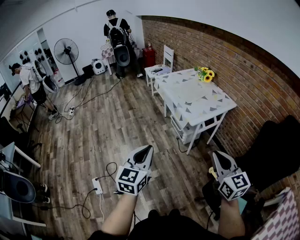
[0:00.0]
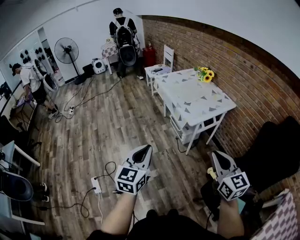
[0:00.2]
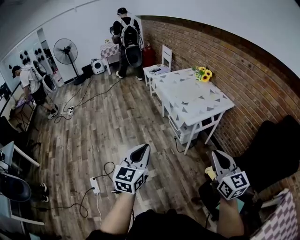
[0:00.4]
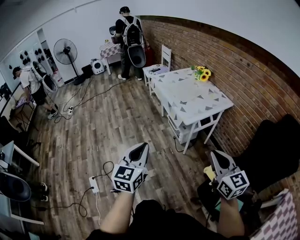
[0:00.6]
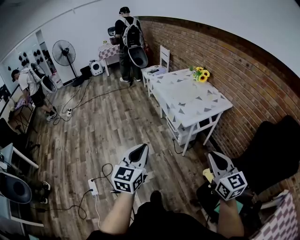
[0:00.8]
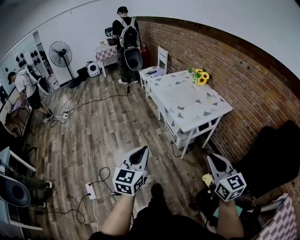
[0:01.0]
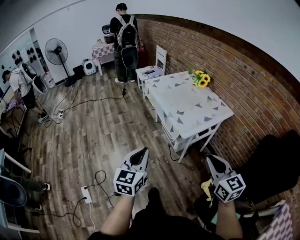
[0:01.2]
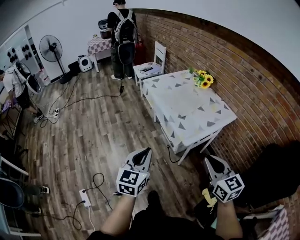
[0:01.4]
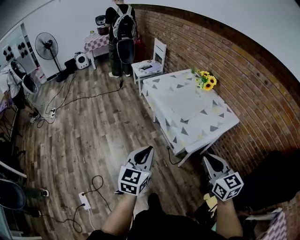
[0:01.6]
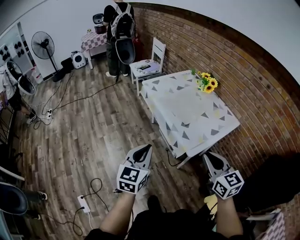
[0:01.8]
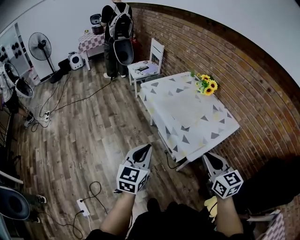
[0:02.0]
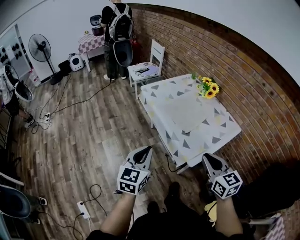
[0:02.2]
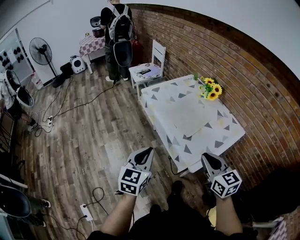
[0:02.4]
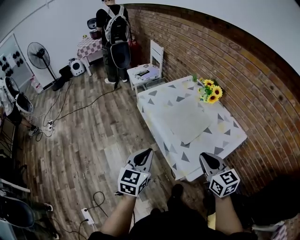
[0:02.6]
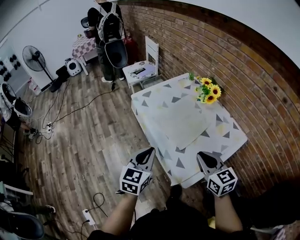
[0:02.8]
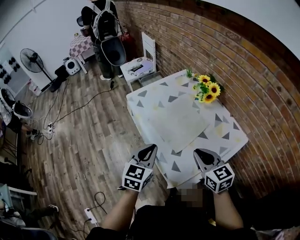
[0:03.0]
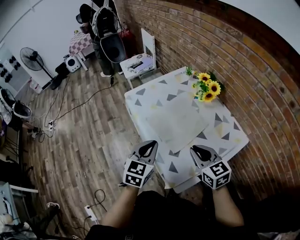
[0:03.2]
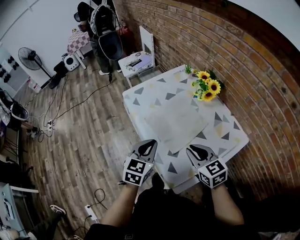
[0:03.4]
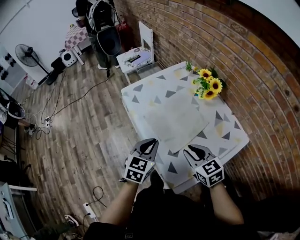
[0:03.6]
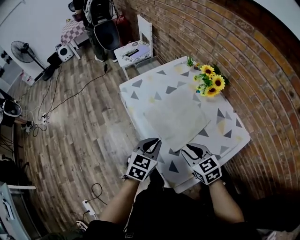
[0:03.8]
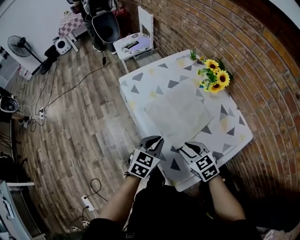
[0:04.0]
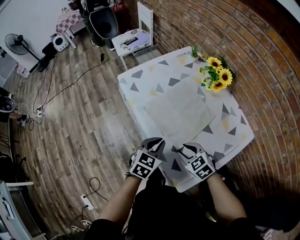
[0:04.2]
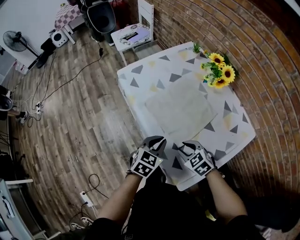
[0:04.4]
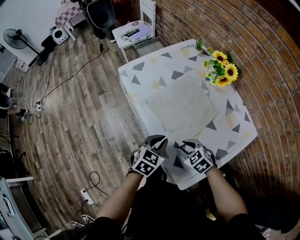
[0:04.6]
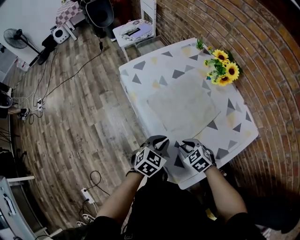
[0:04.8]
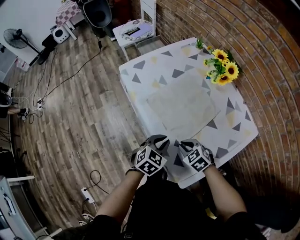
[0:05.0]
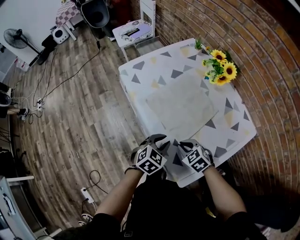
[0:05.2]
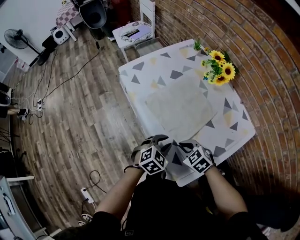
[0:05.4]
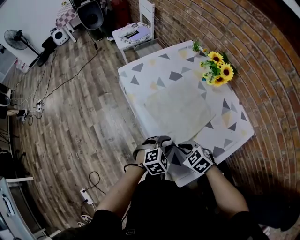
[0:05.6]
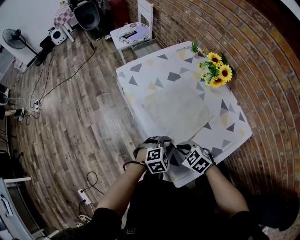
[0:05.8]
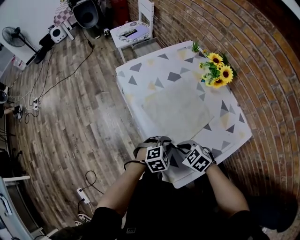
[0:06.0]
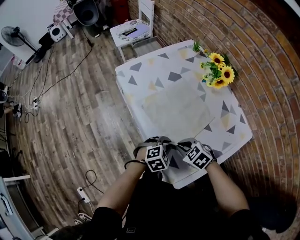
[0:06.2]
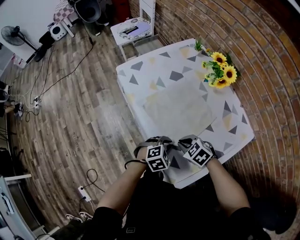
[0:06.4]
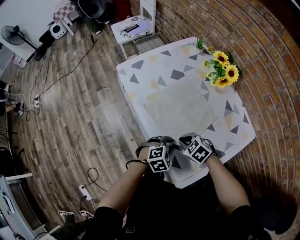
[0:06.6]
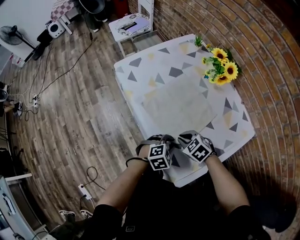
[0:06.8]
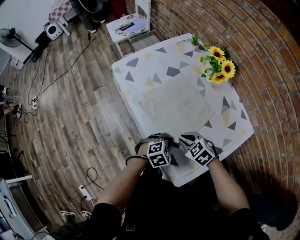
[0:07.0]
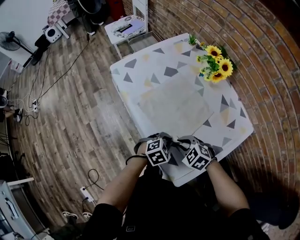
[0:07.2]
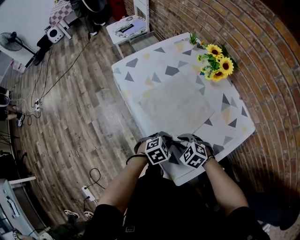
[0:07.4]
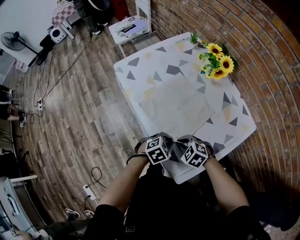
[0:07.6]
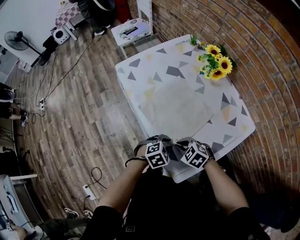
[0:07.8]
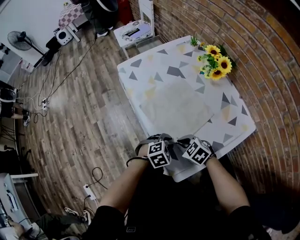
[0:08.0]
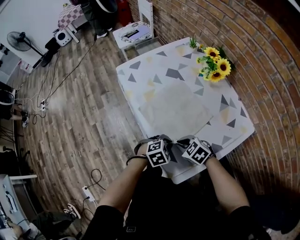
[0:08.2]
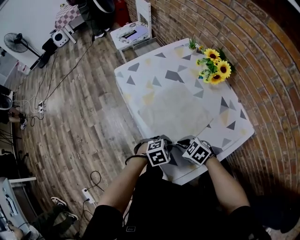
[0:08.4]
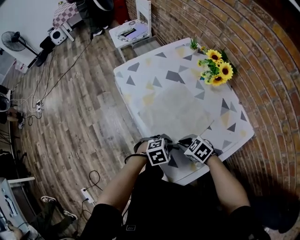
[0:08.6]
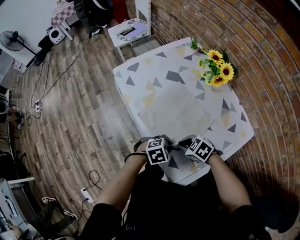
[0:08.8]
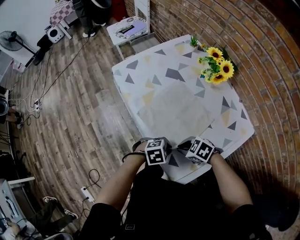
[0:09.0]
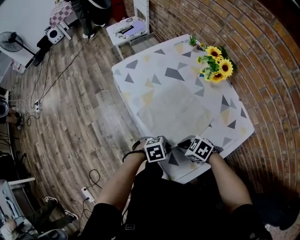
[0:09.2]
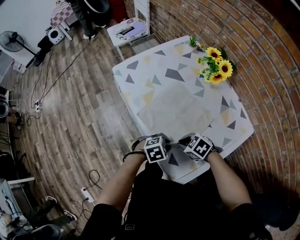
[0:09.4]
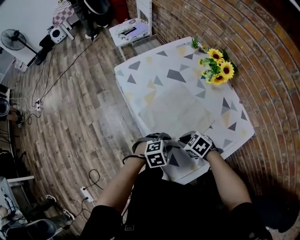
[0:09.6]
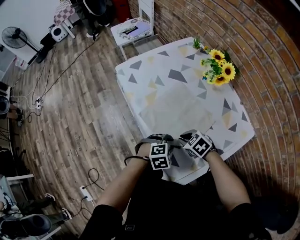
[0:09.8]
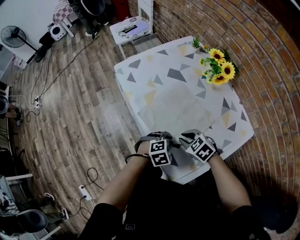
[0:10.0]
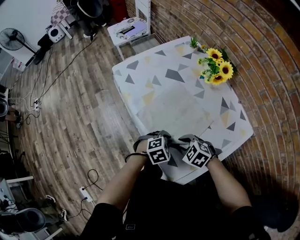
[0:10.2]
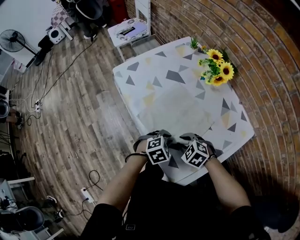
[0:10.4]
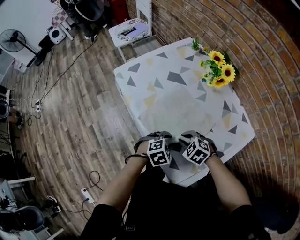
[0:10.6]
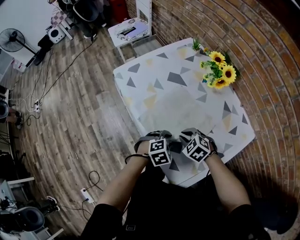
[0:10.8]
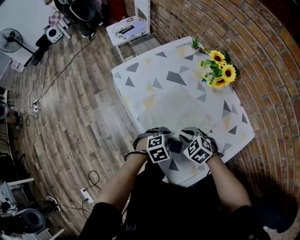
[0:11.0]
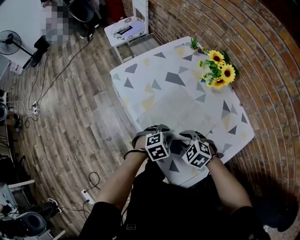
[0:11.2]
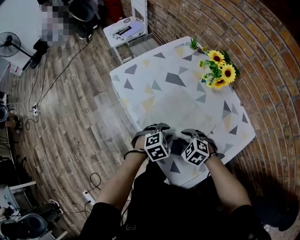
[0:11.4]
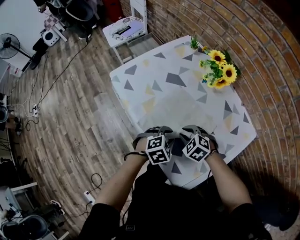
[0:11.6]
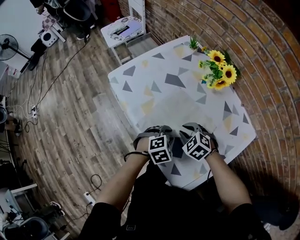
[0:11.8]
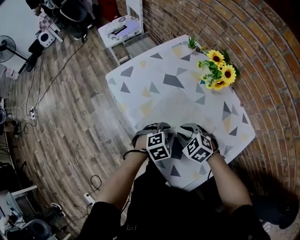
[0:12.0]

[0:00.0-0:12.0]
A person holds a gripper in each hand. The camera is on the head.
0:00.0 to 0:01.6: Both grippers travel together forward, some 25 cm.
0:01.6 to 0:03.0: The grippers both shift forward by approximately 30 cm.
0:03.0 to 0:04.4: The two grippers go some 20 cm downward. The right gripper points its fingers about 30 degrees further downward, and opens its fingers. The left gripper turns by about 20 degrees.
0:04.4 to 0:06.0: The left gripper goes approximately 10 cm downward and to the right, and changes its angle by roughly 40 degrees; the right gripper closes up.
0:06.0 to 0:07.6: The grippers make only small movements.
0:07.6 to 0:09.0: The right gripper changes its angle by some 20 degrees.
0:09.0 to 0:10.4: The left gripper moves roughly 5 cm; the right gripper changes its angle by about 20 degrees, and opens its fingers.
0:10.4 to 0:12.0: The right gripper changes place by roughly 10 cm, while the left gripper ends up about 10 cm from where it was.

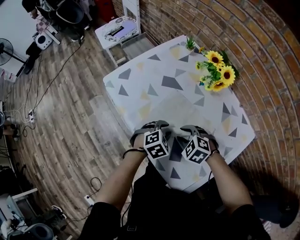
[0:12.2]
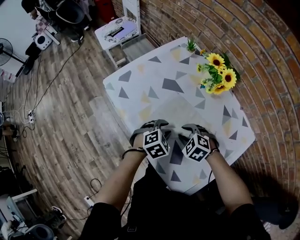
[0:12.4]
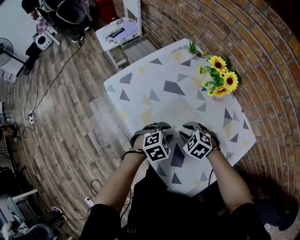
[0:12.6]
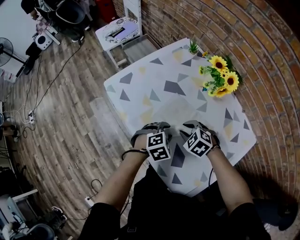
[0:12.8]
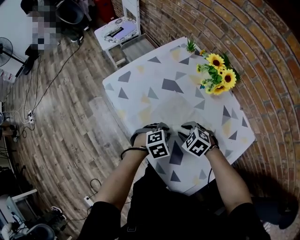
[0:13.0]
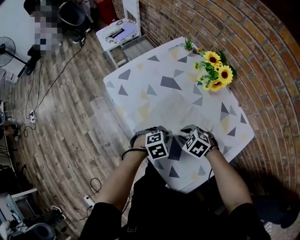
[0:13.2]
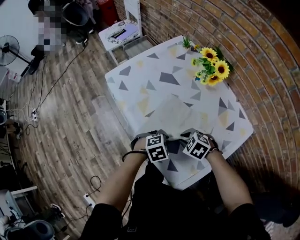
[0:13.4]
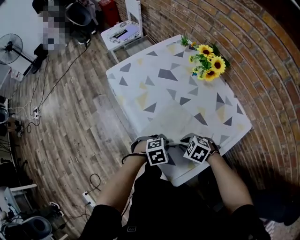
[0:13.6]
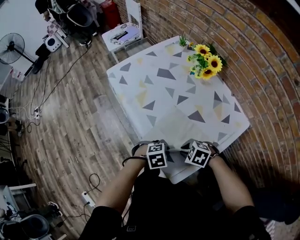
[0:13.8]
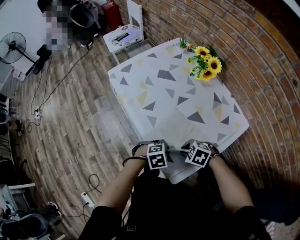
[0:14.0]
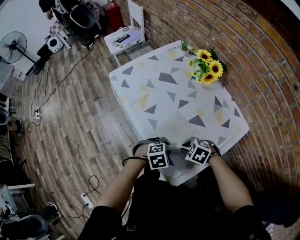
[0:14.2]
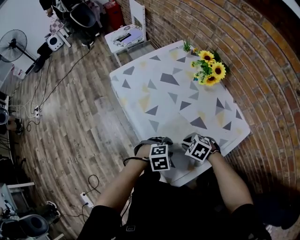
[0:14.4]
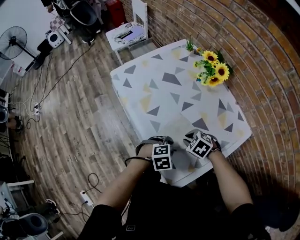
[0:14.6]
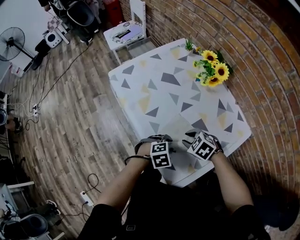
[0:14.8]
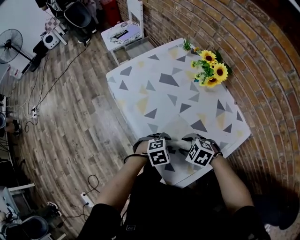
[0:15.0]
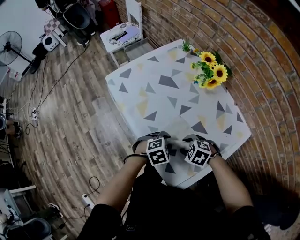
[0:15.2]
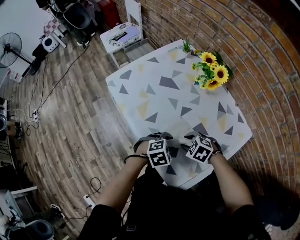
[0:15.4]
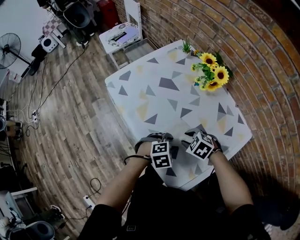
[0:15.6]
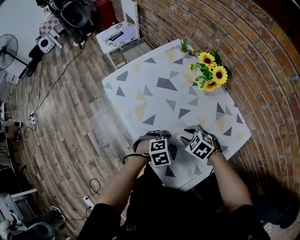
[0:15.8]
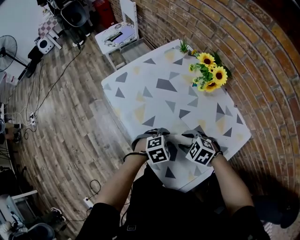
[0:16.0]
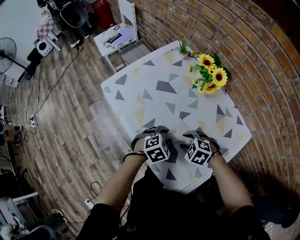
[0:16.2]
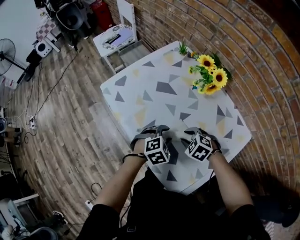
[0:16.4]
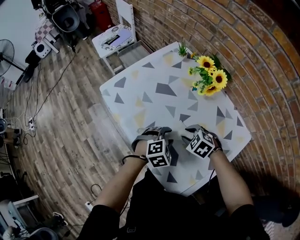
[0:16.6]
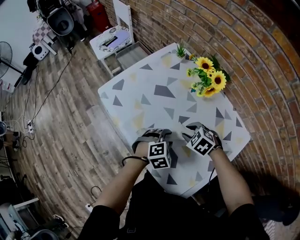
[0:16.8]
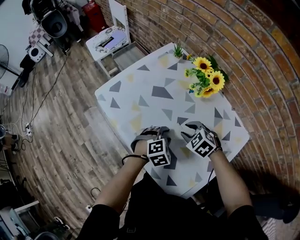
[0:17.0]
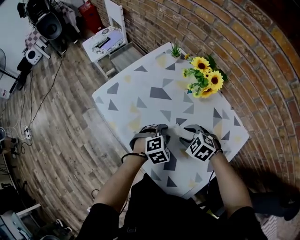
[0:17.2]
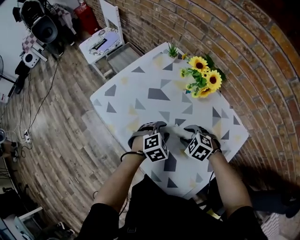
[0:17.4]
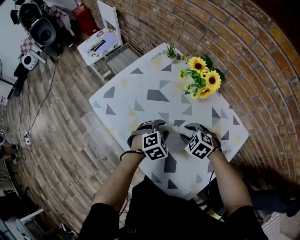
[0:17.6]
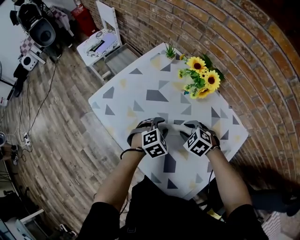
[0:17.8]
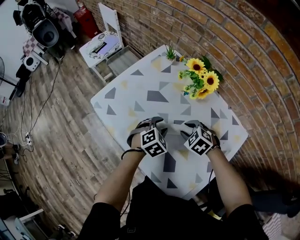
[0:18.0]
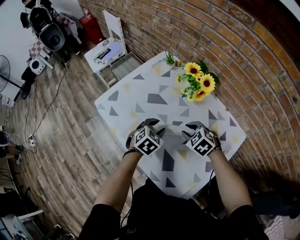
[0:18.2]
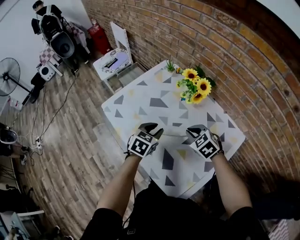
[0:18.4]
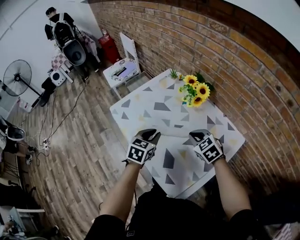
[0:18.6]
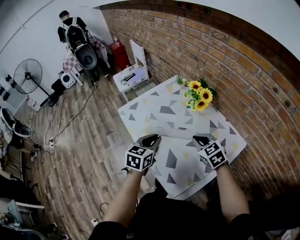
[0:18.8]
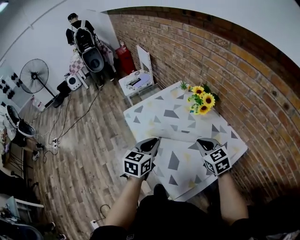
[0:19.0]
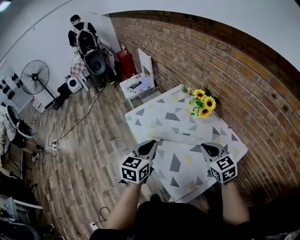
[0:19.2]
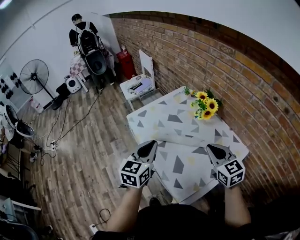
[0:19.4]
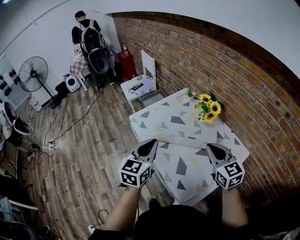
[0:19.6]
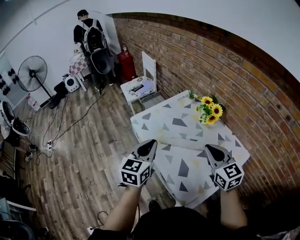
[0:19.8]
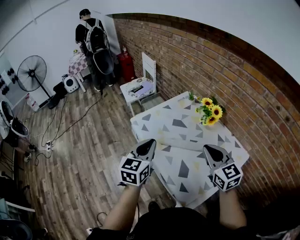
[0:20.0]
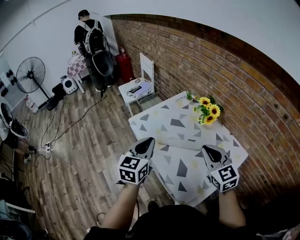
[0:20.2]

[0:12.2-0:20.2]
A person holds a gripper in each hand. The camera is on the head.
0:12.2 to 0:13.8: The right gripper changes place by roughly 20 cm, and closes up, while the left gripper ends up about 20 cm from where it was, and closes its fingers.
0:13.8 to 0:15.4: The right gripper changes place by roughly 10 cm, and opens up. The left gripper ends up about 10 cm from where it was, and opens up.
0:15.4 to 0:17.0: The left gripper moves some 10 cm; the right gripper shifts by roughly 10 cm.
0:17.0 to 0:18.6: Both grippers travel together upward, roughly 10 cm. The left gripper rotates around the line of its fingers by roughly 40 degrees, counterclockwise from behind, and closes its fingers. Meanwhile the right gripper rotates some 20 degrees, and closes.
0:18.6 to 0:20.2: The right gripper moves upward and backward, about 20 cm, and turns by some 30 degrees. Meanwhile the left gripper goes about 20 cm upward, to the left and backward, and turns by roughly 30 degrees.

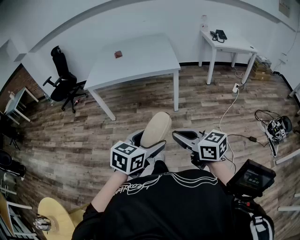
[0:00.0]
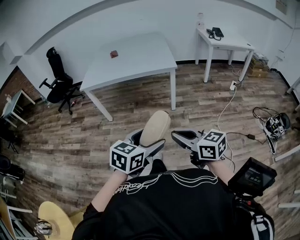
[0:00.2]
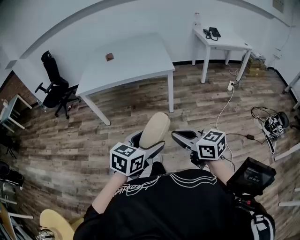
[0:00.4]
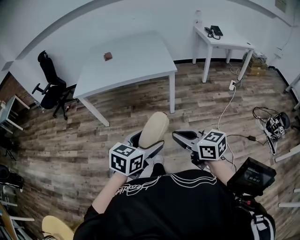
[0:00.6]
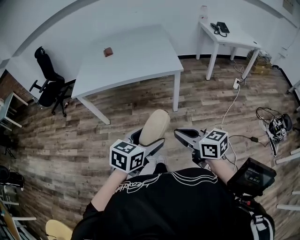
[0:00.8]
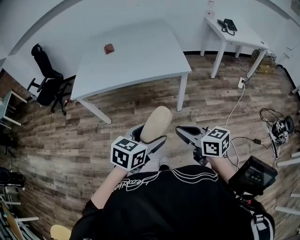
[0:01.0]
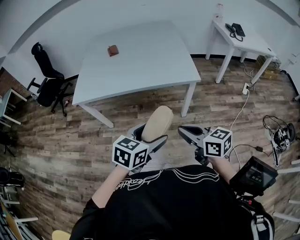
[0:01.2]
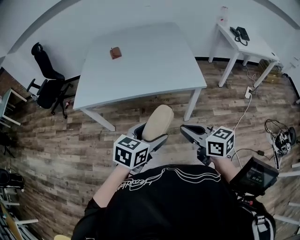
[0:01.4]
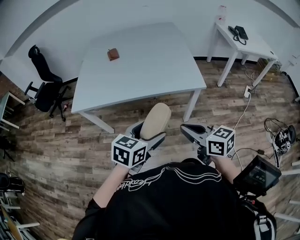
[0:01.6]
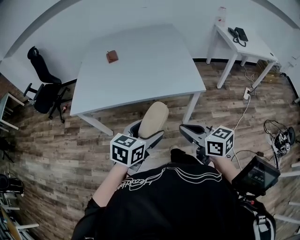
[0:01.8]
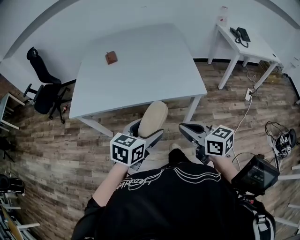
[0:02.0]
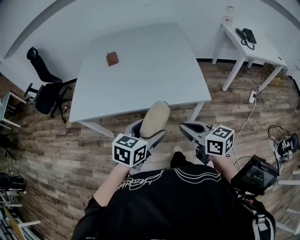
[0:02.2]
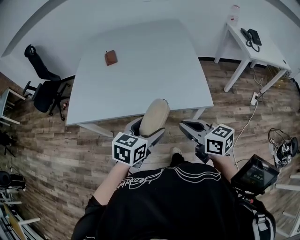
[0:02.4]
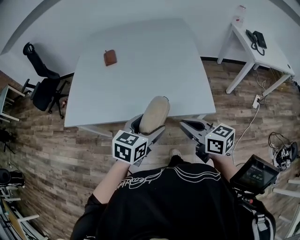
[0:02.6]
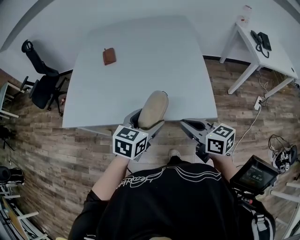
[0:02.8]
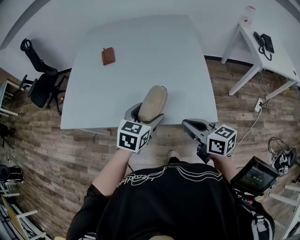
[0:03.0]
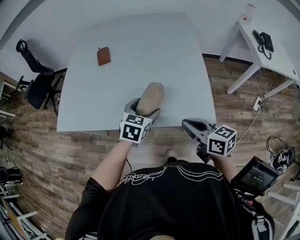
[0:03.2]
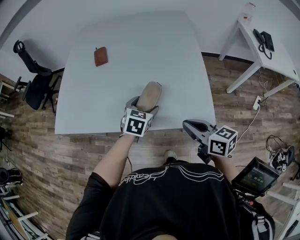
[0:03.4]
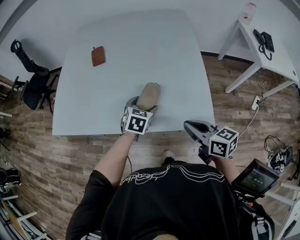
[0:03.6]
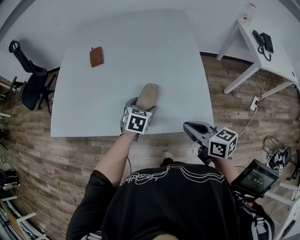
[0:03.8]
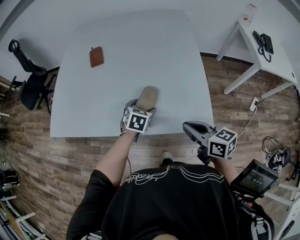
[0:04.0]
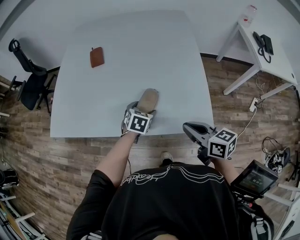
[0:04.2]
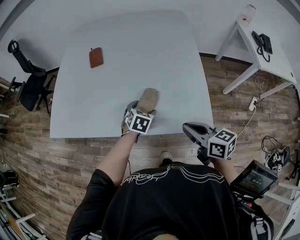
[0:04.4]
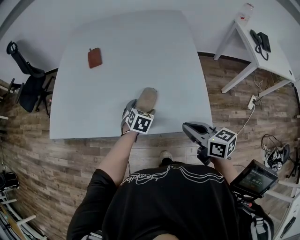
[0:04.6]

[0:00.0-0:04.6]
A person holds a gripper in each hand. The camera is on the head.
0:00.0 to 0:01.6: The two grippers travel together, forward, approximately 40 cm.
0:01.6 to 0:03.0: Both grippers move forward, about 30 cm.
0:03.0 to 0:04.6: The right gripper moves about 5 cm, while the left gripper shifts approximately 20 cm downward and forward, and turns by approximately 20 degrees.
